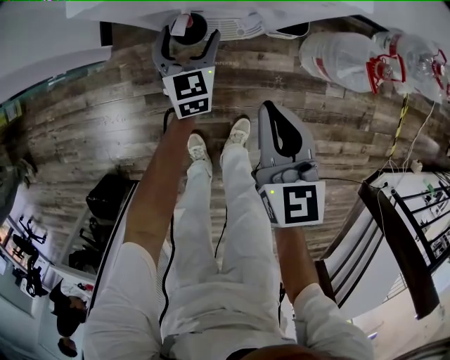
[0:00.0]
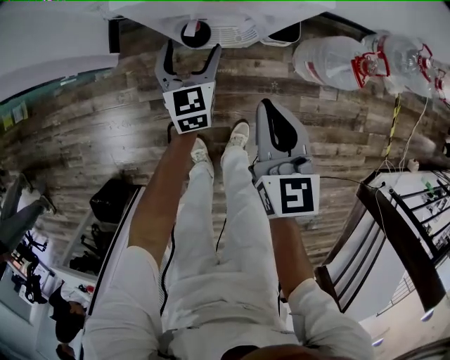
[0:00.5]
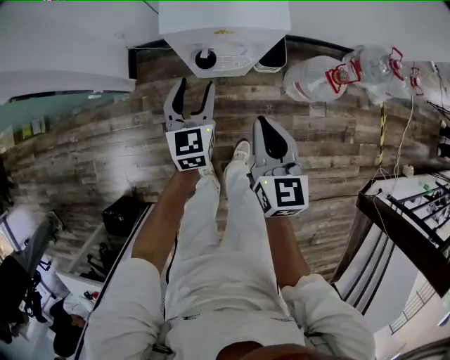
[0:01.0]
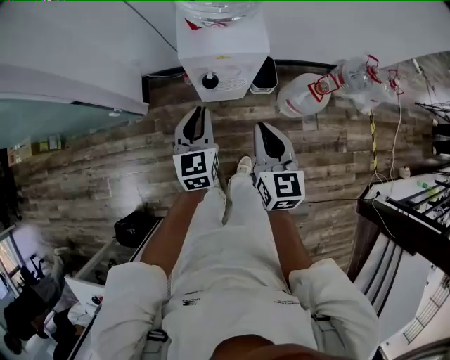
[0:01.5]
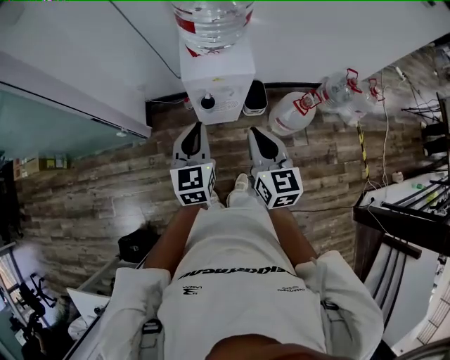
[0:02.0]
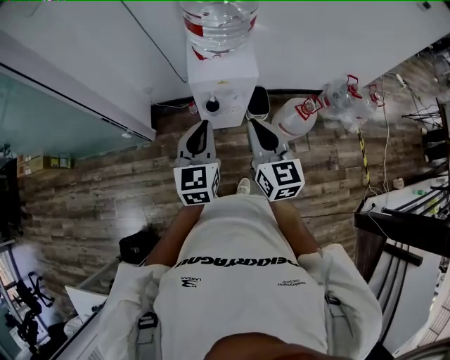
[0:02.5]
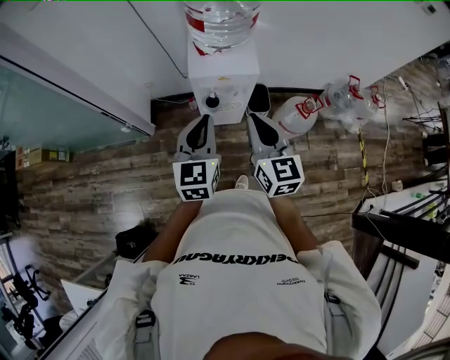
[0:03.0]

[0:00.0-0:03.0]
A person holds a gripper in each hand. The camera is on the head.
0:00.0 to 0:01.5: The right gripper moves upward, about 30 cm. The left gripper heads upward and backward, covering about 50 cm, and closes its fingers.
0:01.5 to 0:03.0: The left gripper is displaced upward and backward by approximately 20 cm; the right gripper moves upward, roughly 15 cm.

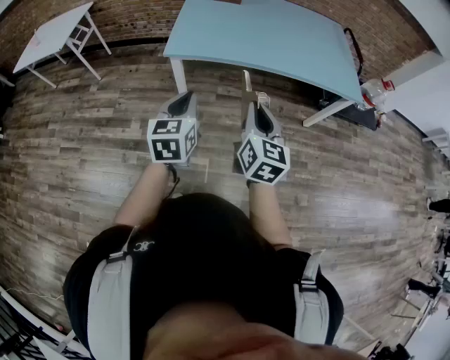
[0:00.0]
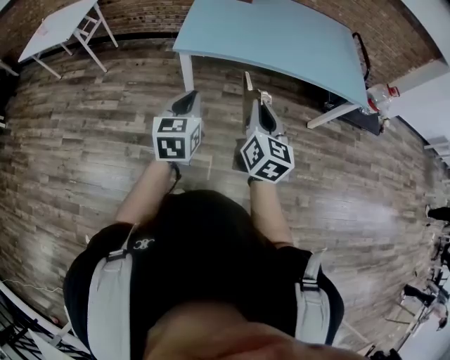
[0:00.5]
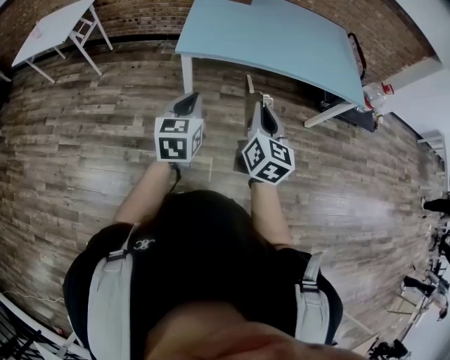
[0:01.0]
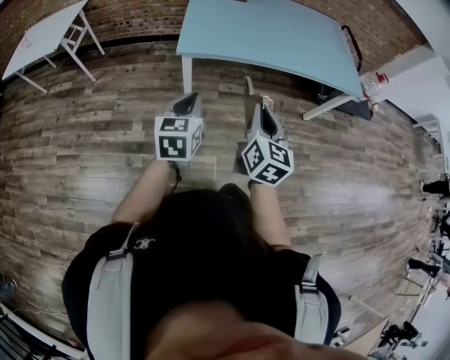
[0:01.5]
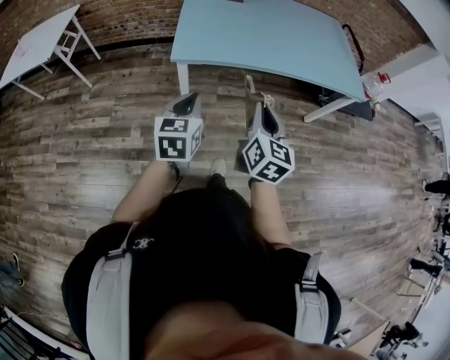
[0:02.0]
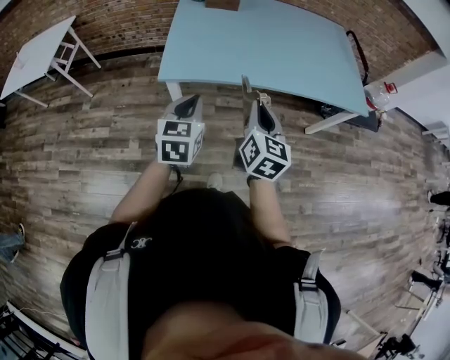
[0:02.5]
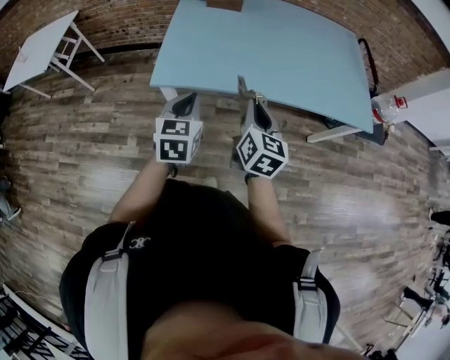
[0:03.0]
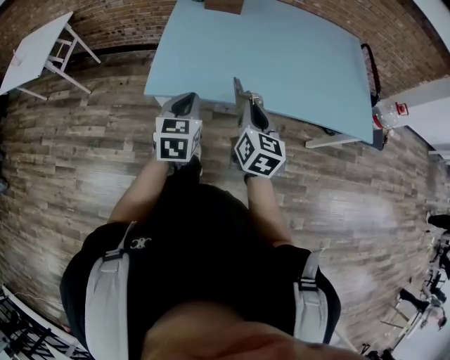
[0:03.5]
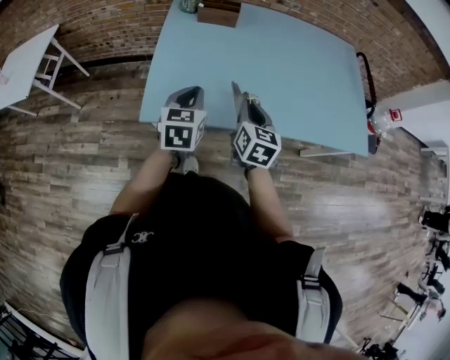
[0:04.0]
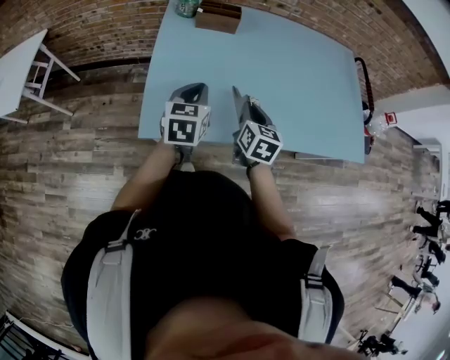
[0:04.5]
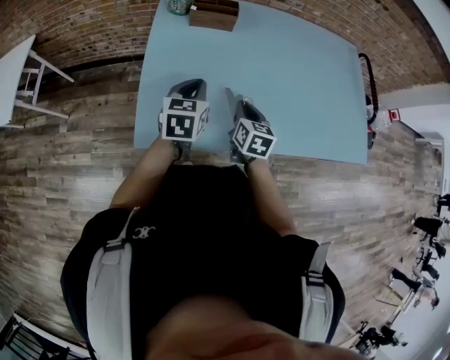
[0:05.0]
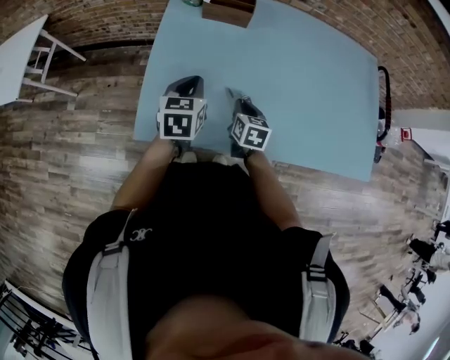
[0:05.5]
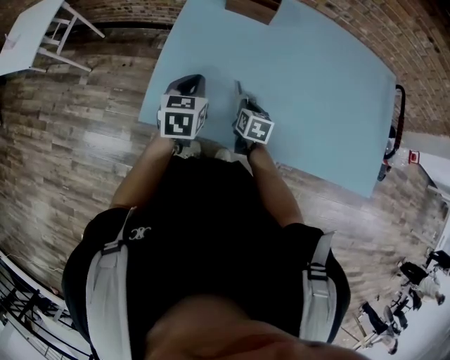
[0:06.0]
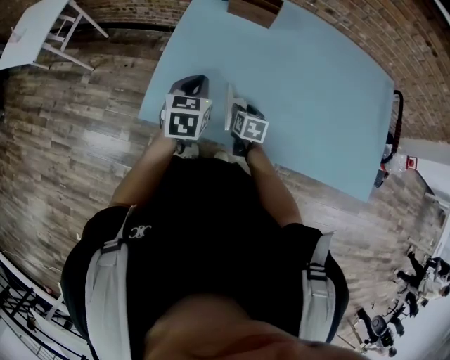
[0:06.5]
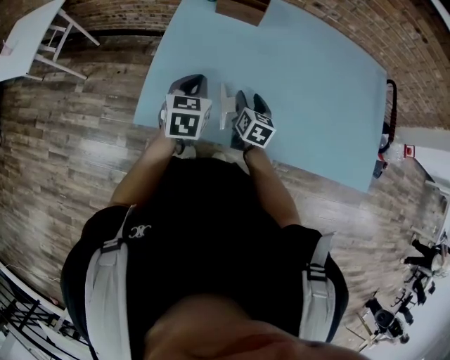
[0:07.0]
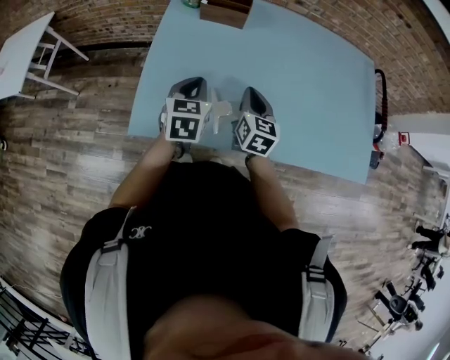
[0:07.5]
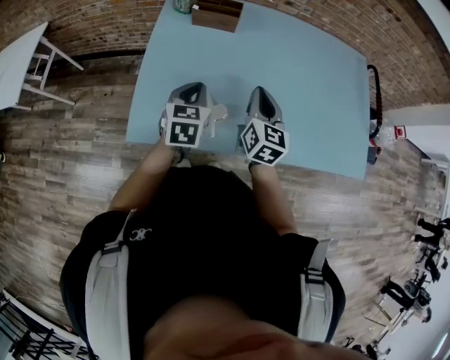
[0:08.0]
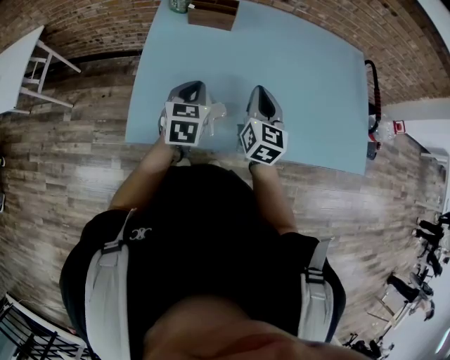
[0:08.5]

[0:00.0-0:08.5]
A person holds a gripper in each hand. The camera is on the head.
0:00.0 to 0:02.0: The right gripper shifts about 10 cm to the left. Meanwhile the left gripper moves to the left and forward, about 10 cm.
0:02.0 to 0:04.0: Both grippers move forward, some 35 cm.
0:04.0 to 0:06.5: The right gripper shifts about 25 cm downward and forward, rotates some 30 degrees, and opens, while the left gripper heads forward, covering roughly 10 cm.
0:06.5 to 0:08.5: The left gripper travels to the right by approximately 5 cm. Meanwhile the right gripper is displaced upward by approximately 25 cm, tilts its fingers some 40 degrees upward, and closes.

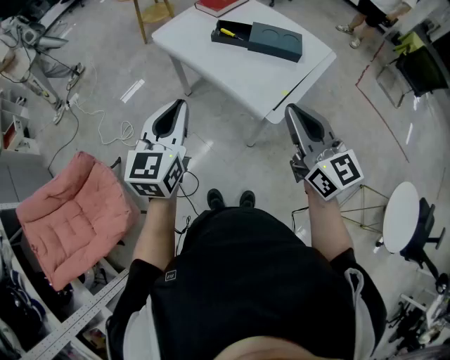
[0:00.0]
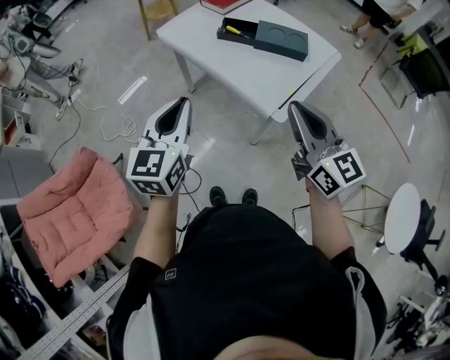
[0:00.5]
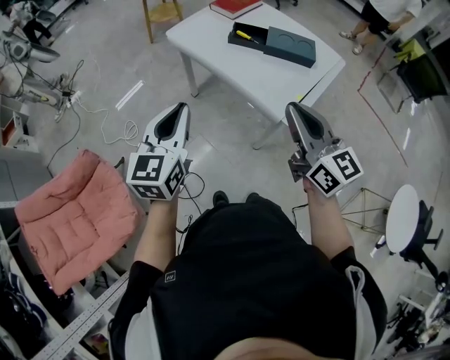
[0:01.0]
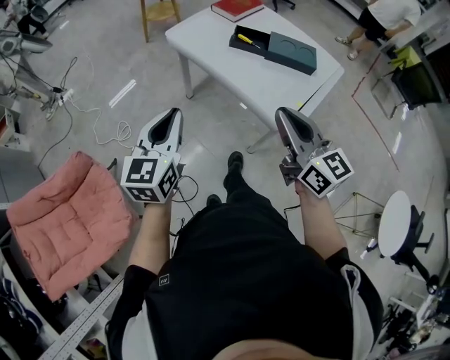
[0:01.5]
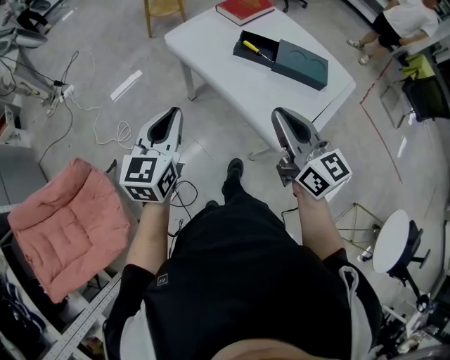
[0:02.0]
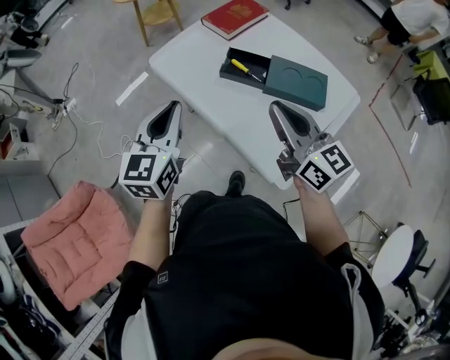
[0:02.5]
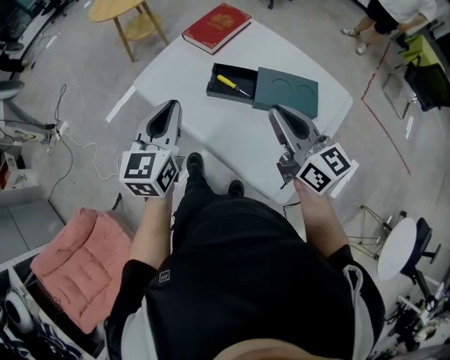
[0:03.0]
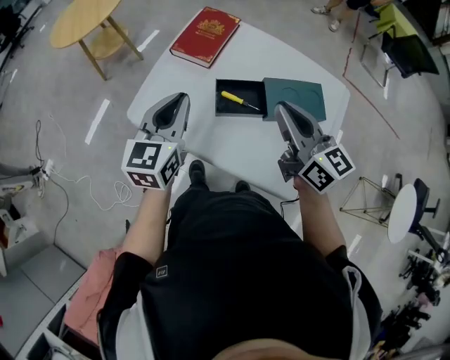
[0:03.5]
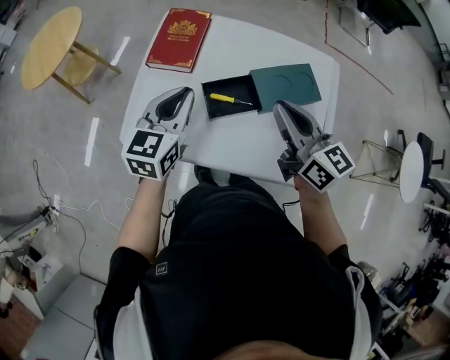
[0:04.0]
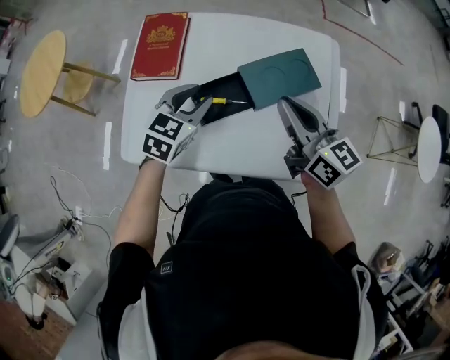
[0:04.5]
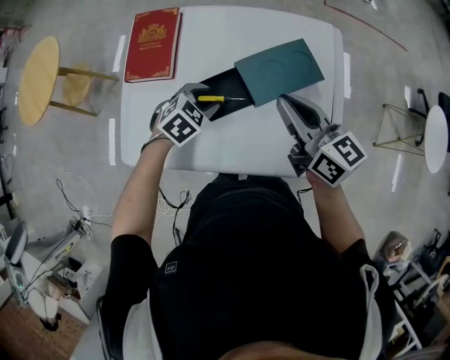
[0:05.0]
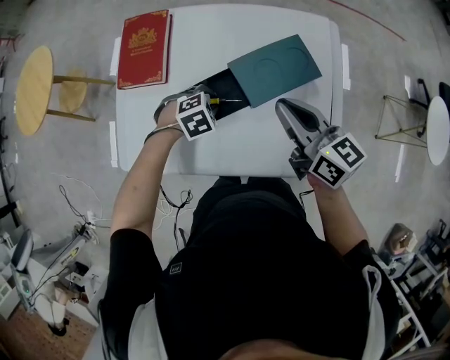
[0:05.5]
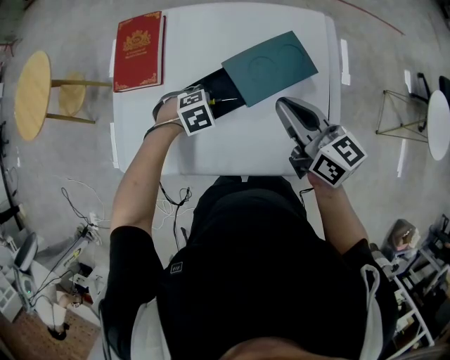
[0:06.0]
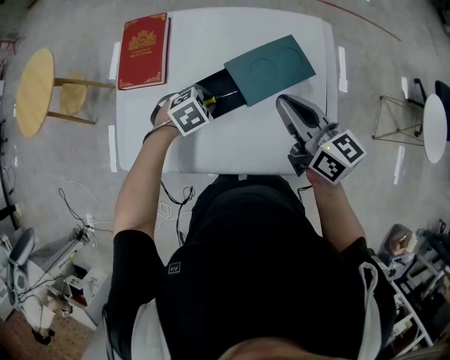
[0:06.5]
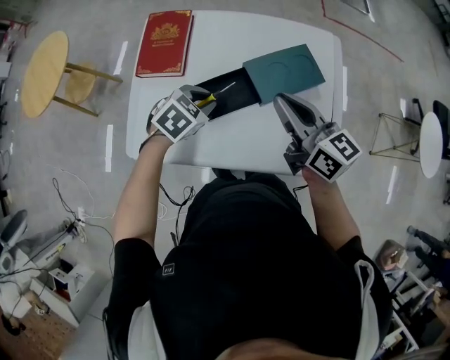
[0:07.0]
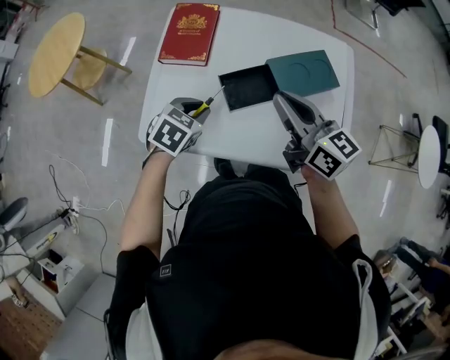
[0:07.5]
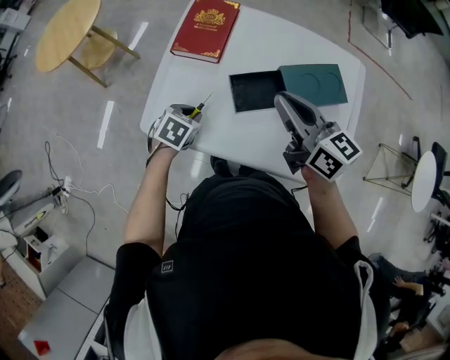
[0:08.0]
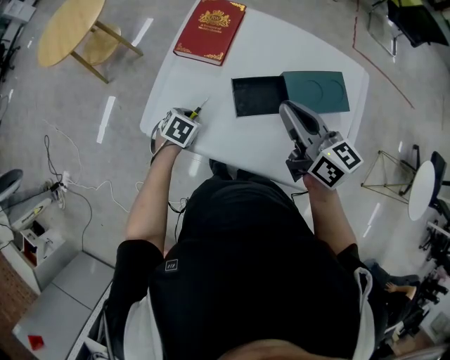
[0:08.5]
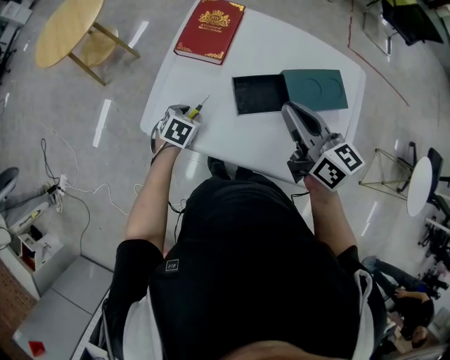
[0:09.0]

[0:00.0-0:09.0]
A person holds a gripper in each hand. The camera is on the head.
0:00.0 to 0:02.0: The two grippers go about 15 cm forward and to the left.
0:02.0 to 0:04.5: The right gripper moves about 35 cm, and swivels approximately 40 degrees. The left gripper ends up about 50 cm from where it was, rotates some 70 degrees, and opens.
0:04.5 to 0:07.0: The left gripper reaches about 20 cm downward, then returns, and turns by roughly 30 degrees.
0:07.0 to 0:09.0: The left gripper travels to the left and downward by some 20 cm, and changes its angle by about 30 degrees; the right gripper moves to the left, about 10 cm.

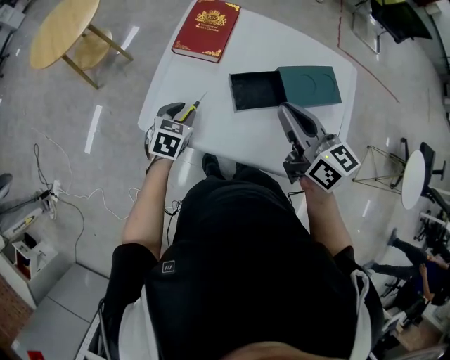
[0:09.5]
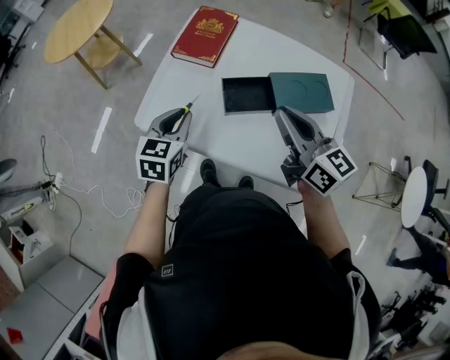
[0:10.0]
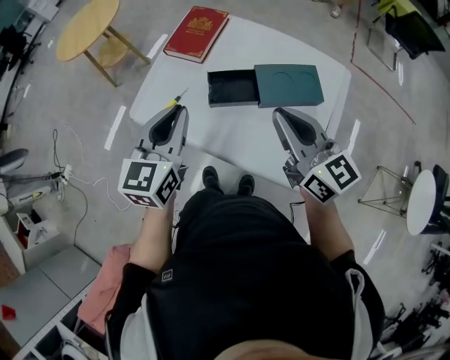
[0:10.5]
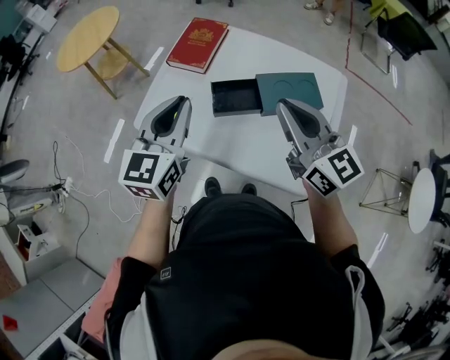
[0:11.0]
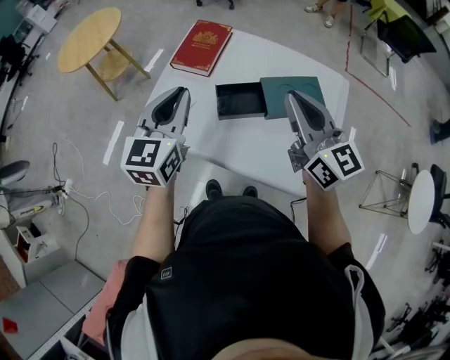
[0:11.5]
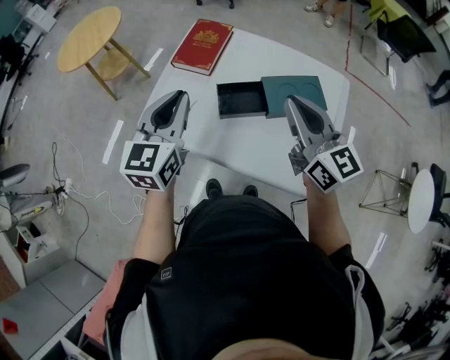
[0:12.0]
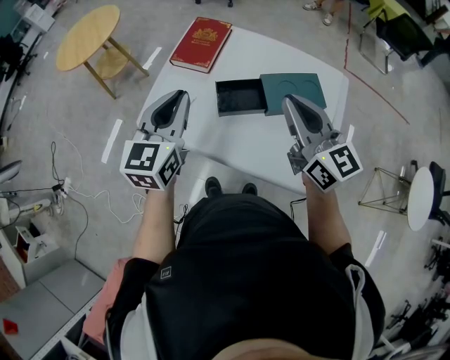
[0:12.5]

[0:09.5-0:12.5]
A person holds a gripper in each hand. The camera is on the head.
0:09.5 to 0:11.0: The left gripper travels upward by some 30 cm, points its fingers roughly 40 degrees further upward, and closes its fingers. The right gripper heads upward, to the right and backward, covering roughly 15 cm, and turns by approximately 20 degrees.
0:11.0 to 0:12.5: There are only small adjustments of the grippers.

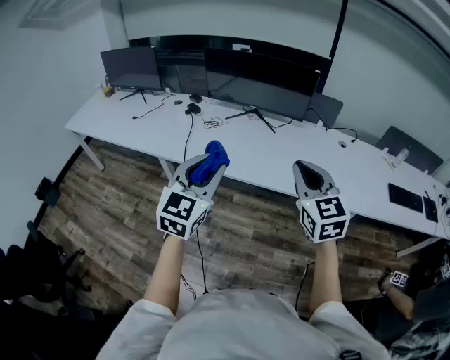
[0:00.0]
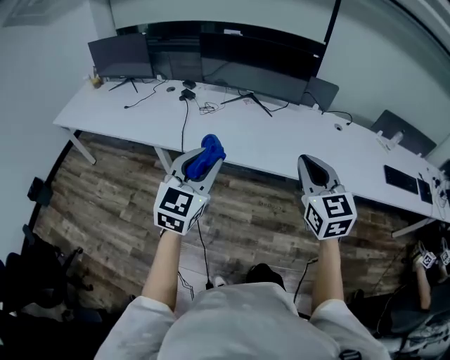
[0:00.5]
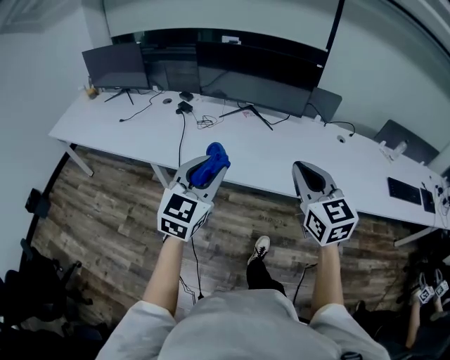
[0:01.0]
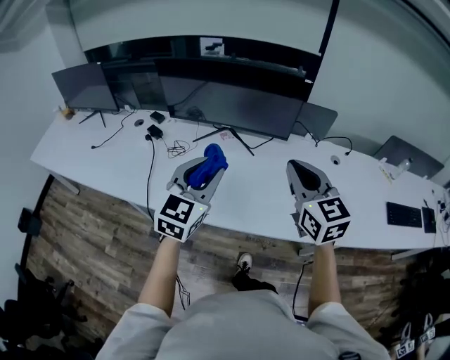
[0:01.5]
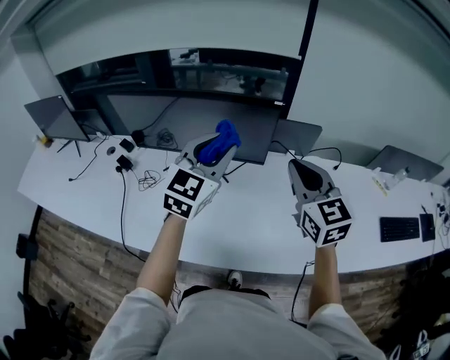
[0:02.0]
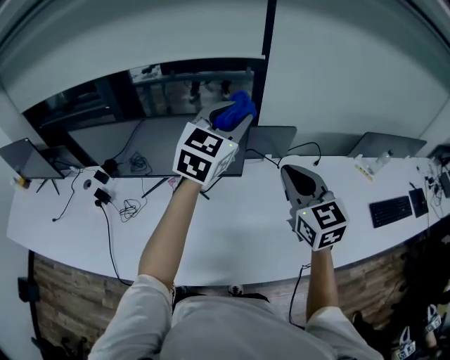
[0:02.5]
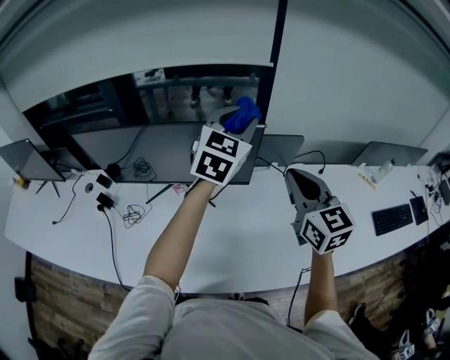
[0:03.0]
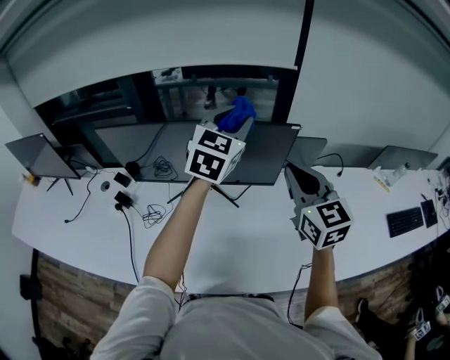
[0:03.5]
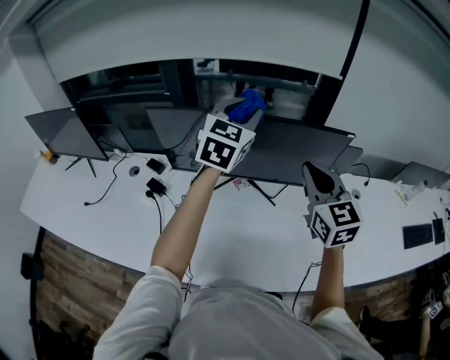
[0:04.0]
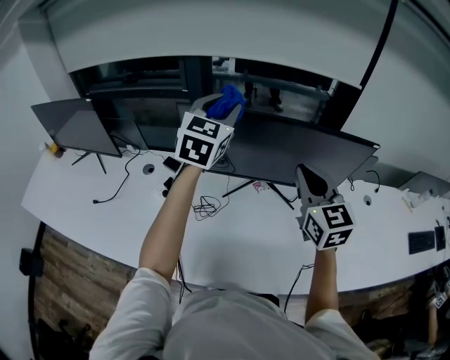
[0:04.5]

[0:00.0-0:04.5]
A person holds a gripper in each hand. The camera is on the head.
0:00.0 to 0:02.0: The pair of grippers is taken forward, approximately 50 cm.
0:02.0 to 0:04.5: The right gripper travels to the left by about 30 cm. The left gripper heads to the left and forward, covering some 40 cm.
